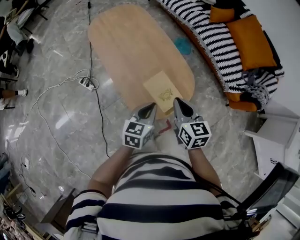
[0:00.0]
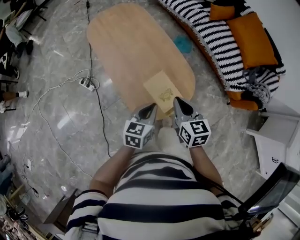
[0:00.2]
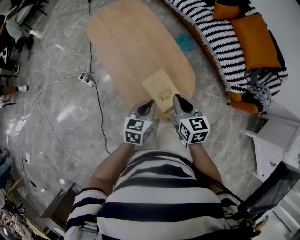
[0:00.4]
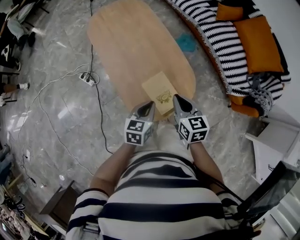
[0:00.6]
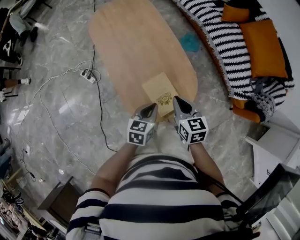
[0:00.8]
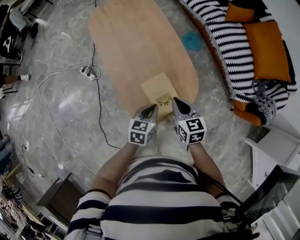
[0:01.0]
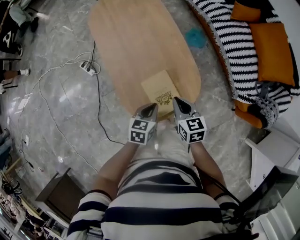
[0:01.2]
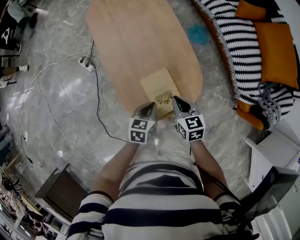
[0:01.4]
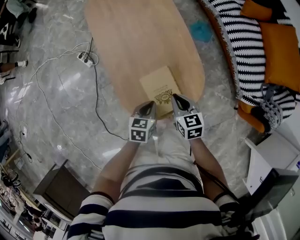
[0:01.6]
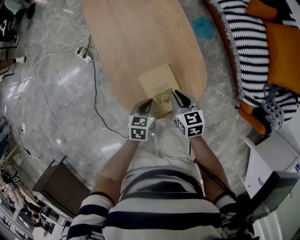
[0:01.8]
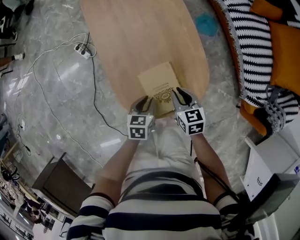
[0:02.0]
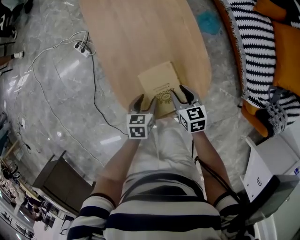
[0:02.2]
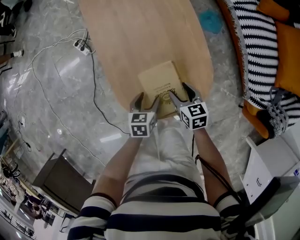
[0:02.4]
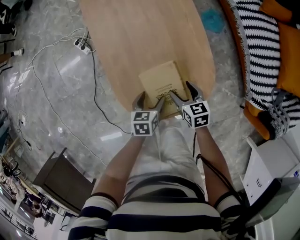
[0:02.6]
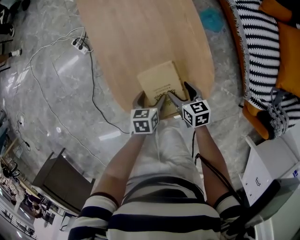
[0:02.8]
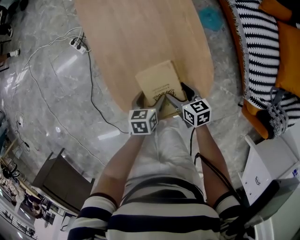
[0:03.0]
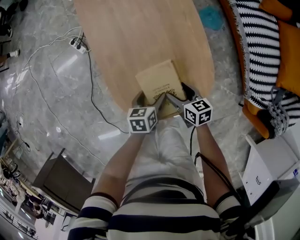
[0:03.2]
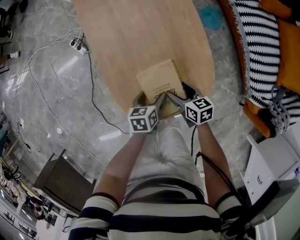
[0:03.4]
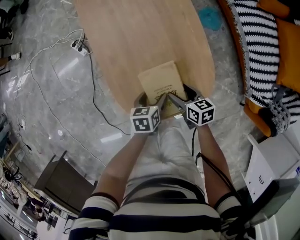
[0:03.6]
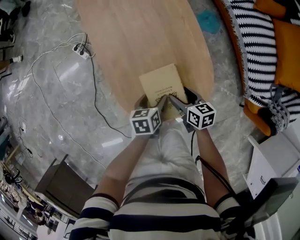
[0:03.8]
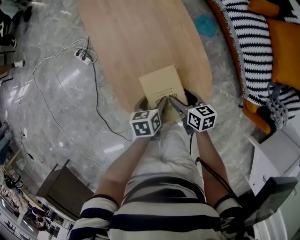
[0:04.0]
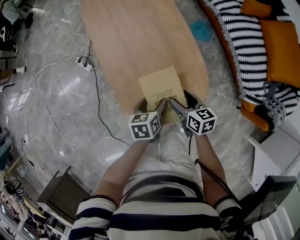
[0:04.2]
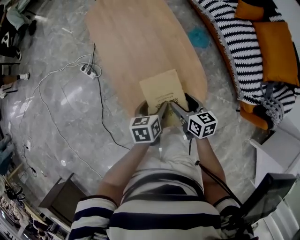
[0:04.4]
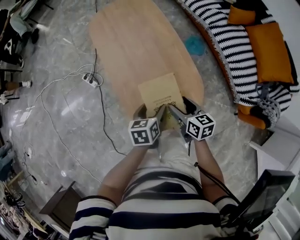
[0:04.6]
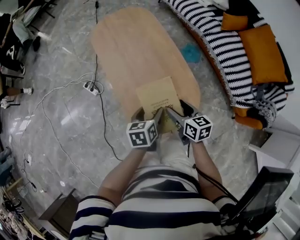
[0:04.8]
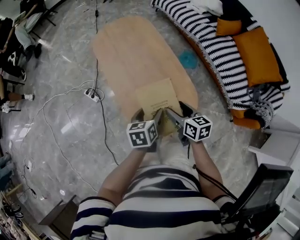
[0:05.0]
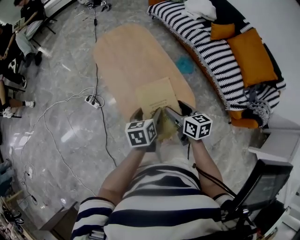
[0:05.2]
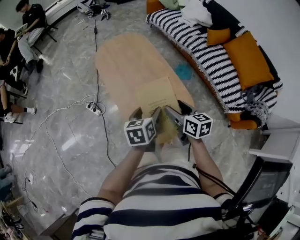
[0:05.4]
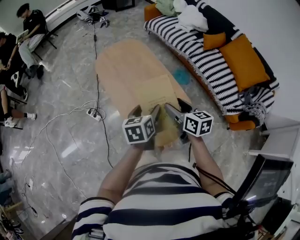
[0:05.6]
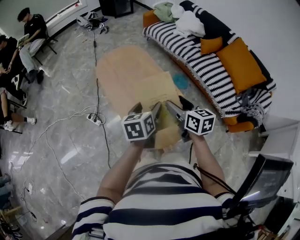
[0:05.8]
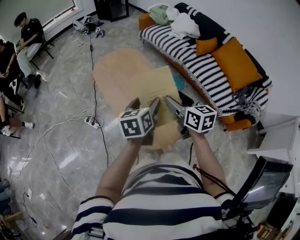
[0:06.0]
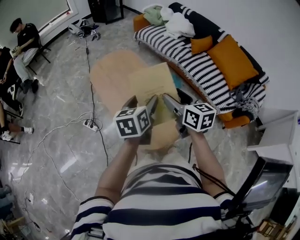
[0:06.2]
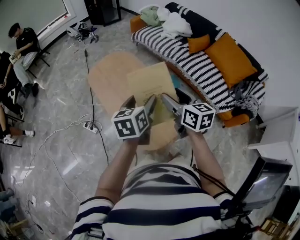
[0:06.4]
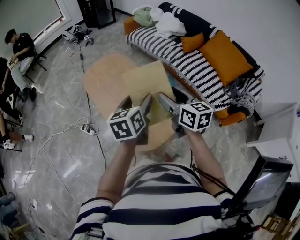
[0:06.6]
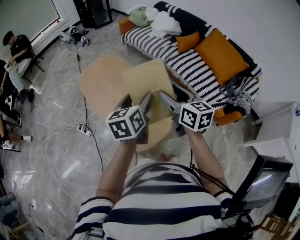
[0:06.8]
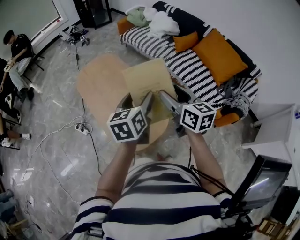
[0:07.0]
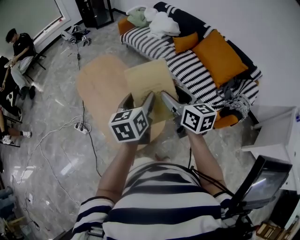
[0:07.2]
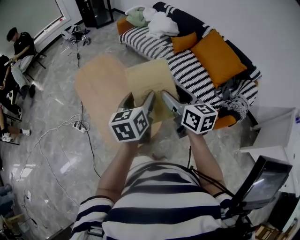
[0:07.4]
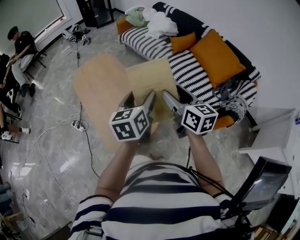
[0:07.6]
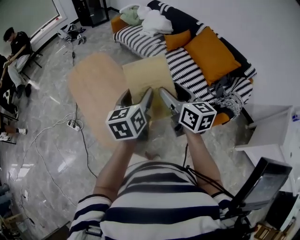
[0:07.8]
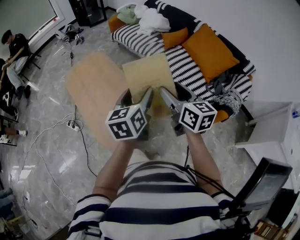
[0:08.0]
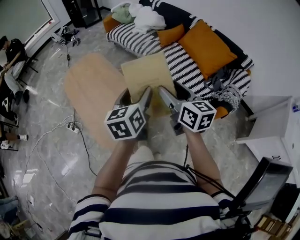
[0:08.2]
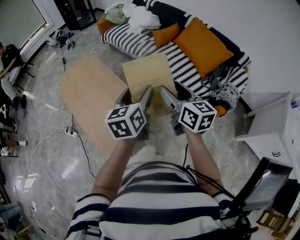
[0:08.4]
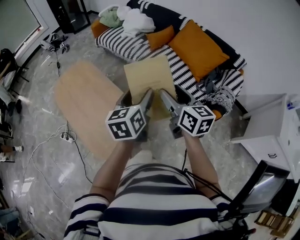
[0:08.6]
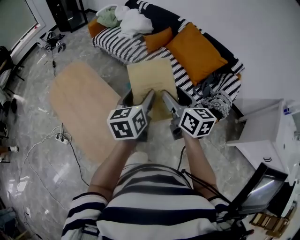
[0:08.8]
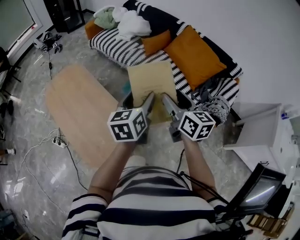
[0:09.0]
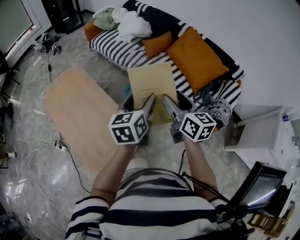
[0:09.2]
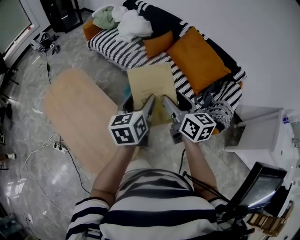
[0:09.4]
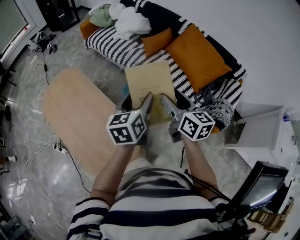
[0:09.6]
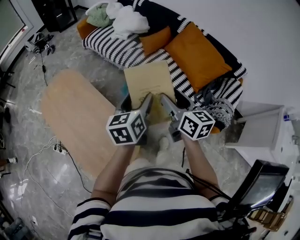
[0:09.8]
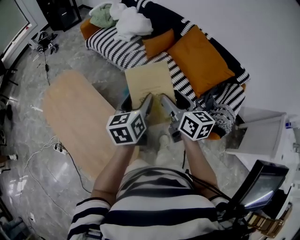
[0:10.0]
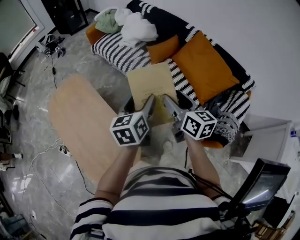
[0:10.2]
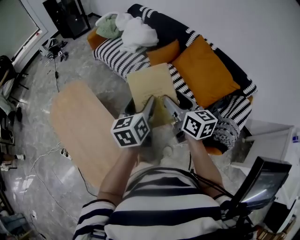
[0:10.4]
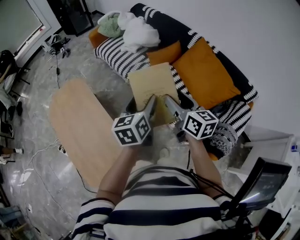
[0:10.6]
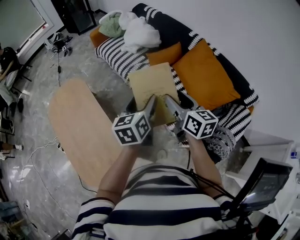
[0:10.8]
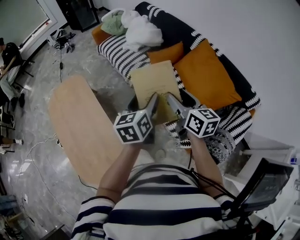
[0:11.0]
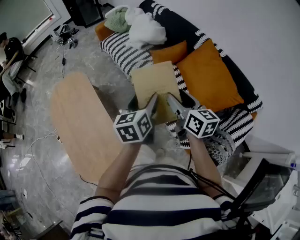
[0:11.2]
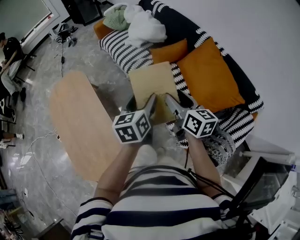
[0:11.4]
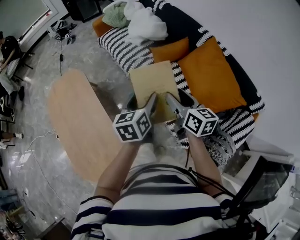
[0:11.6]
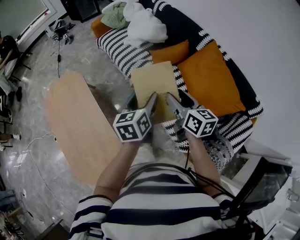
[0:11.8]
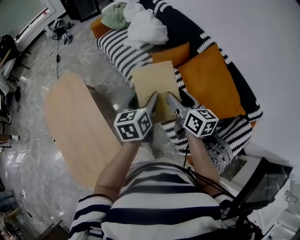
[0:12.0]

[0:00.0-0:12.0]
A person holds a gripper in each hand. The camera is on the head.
0:00.0 to 0:01.6: The two grippers go roughly 20 cm downward. The right gripper swivels some 20 degrees. Meanwhile the left gripper changes its angle by about 30 degrees.
0:01.6 to 0:03.0: Both grippers travel together downward, roughly 10 cm. The right gripper opens its fingers. The left gripper opens.
0:03.0 to 0:04.4: The grippers both shift upward by roughly 15 cm.
0:04.4 to 0:06.0: Both grippers move upward, about 25 cm. The left gripper swivels approximately 30 degrees; the right gripper swivels some 20 degrees.
0:06.0 to 0:07.6: Both grippers travel together to the right, roughly 20 cm.
0:07.6 to 0:09.0: Both grippers move to the right and forward, some 15 cm.
0:09.0 to 0:10.4: Both grippers move forward, some 20 cm.
0:10.4 to 0:12.0: Both grippers move forward and to the right, some 15 cm.

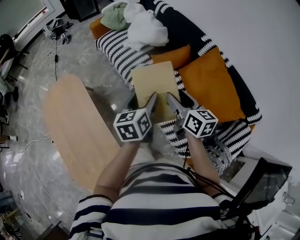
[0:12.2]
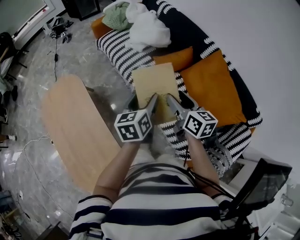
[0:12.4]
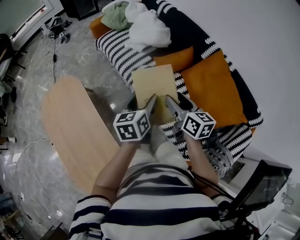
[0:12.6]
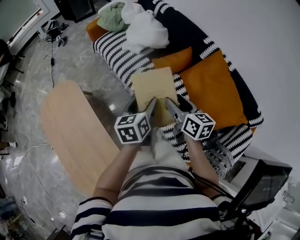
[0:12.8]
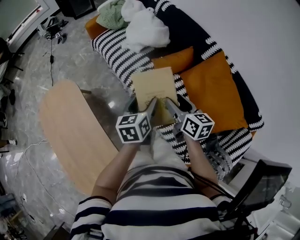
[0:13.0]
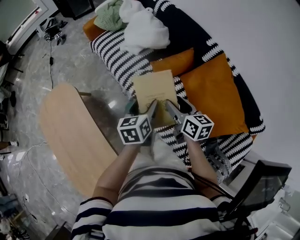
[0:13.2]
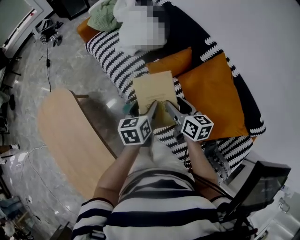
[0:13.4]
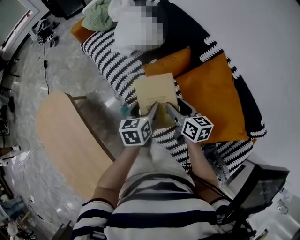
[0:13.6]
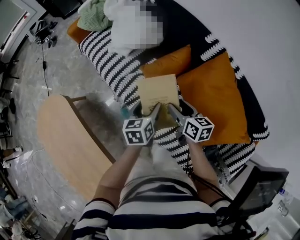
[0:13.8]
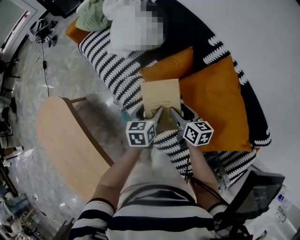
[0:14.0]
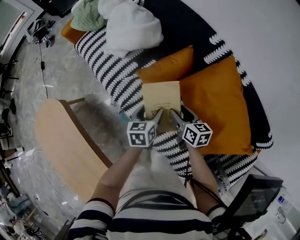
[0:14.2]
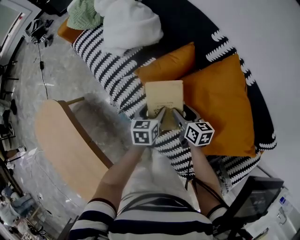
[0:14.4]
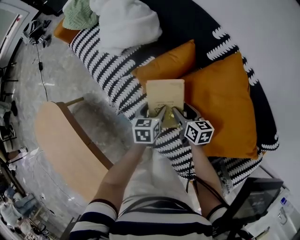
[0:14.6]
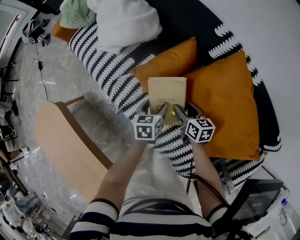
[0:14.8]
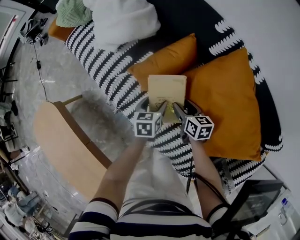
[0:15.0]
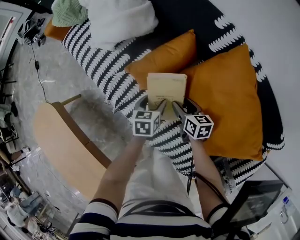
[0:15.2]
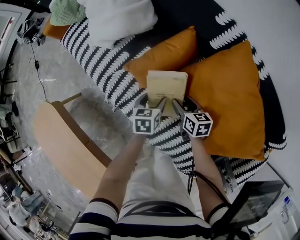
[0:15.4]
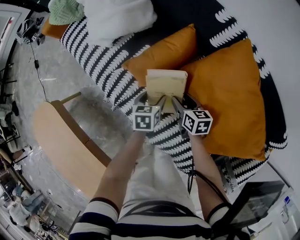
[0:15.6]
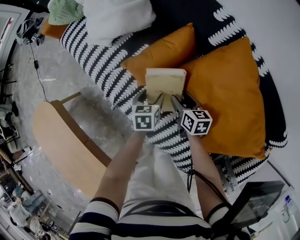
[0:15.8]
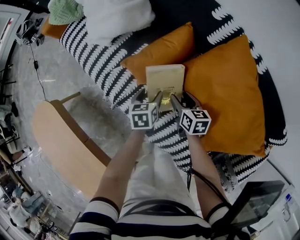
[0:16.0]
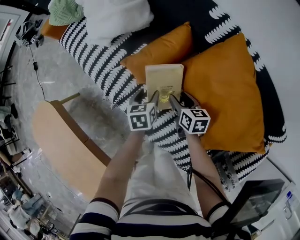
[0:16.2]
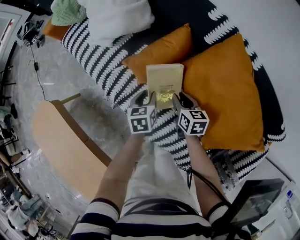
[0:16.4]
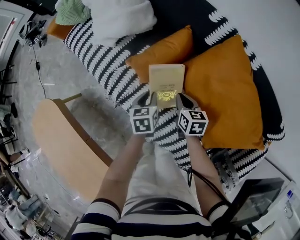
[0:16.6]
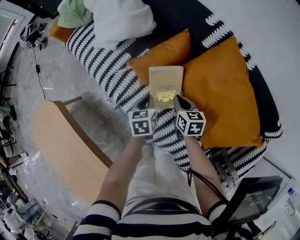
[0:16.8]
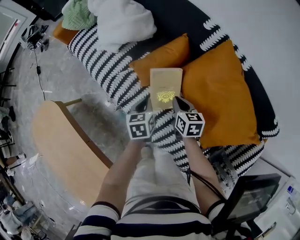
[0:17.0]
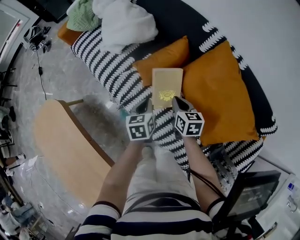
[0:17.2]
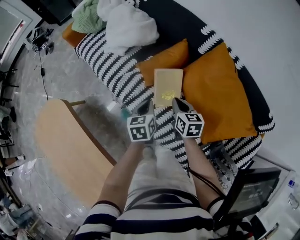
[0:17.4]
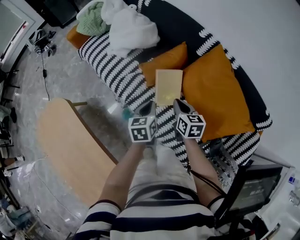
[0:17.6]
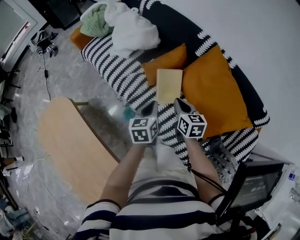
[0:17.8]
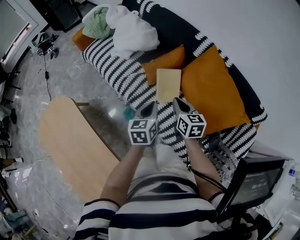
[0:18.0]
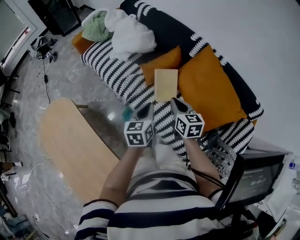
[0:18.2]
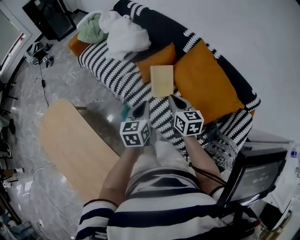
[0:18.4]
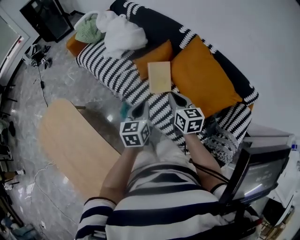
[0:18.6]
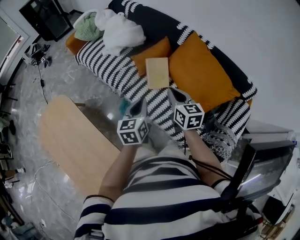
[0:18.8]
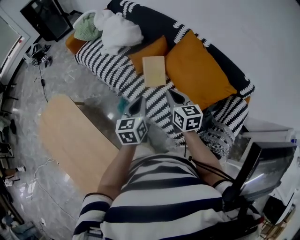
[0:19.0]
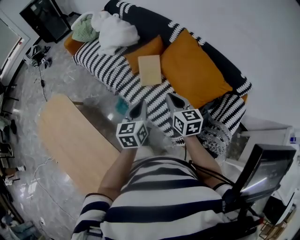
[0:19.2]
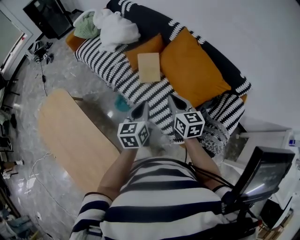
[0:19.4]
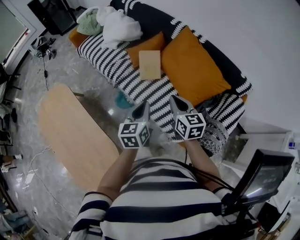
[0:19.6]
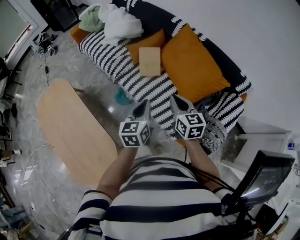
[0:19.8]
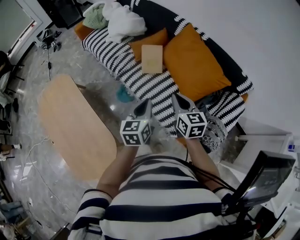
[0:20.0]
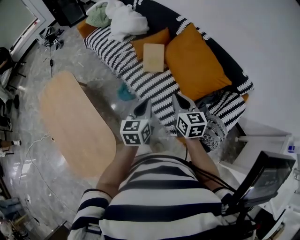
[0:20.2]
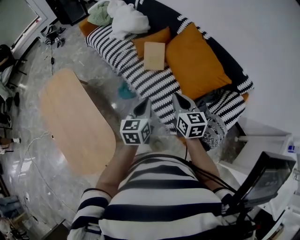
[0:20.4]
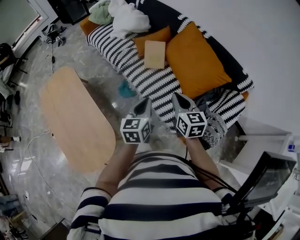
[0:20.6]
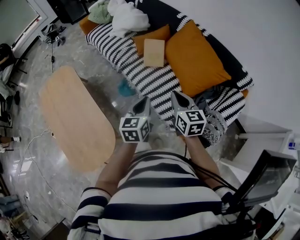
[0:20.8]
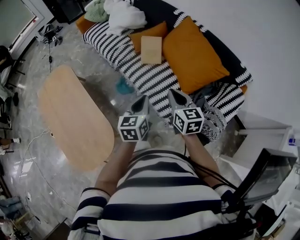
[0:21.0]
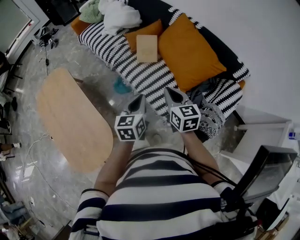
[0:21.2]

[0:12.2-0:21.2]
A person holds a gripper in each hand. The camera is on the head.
0:12.2 to 0:13.8: The right gripper is displaced downward, forward and to the right by approximately 25 cm; the left gripper shifts about 25 cm forward, downward and to the right.
0:13.8 to 0:15.2: Both grippers move downward, some 20 cm.
0:15.2 to 0:16.6: The right gripper closes up, while the left gripper closes its fingers.
0:16.6 to 0:18.2: Both grippers travel together upward and backward, about 25 cm. The left gripper changes its angle by approximately 20 degrees.
0:18.2 to 0:19.8: Both grippers travel together backward and to the right, approximately 20 cm.
0:19.8 to 0:21.2: Both grippers travel together backward, about 5 cm.

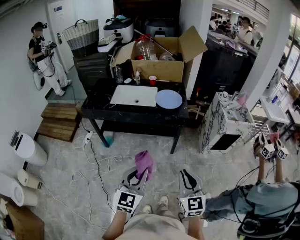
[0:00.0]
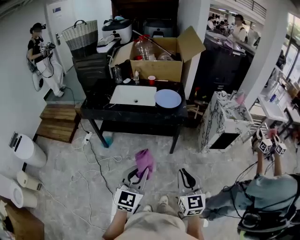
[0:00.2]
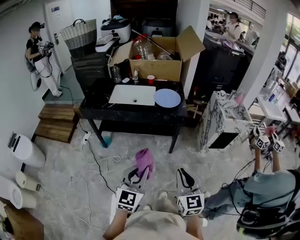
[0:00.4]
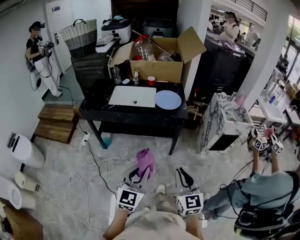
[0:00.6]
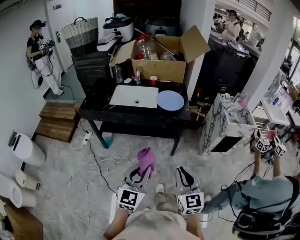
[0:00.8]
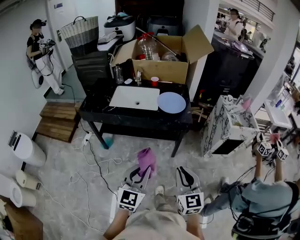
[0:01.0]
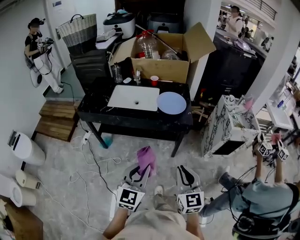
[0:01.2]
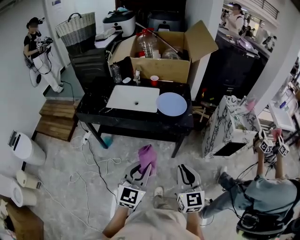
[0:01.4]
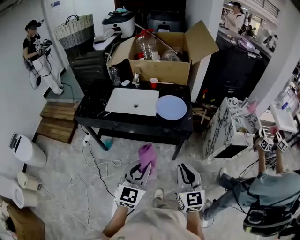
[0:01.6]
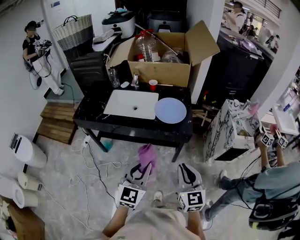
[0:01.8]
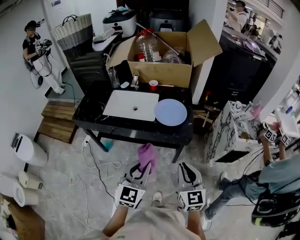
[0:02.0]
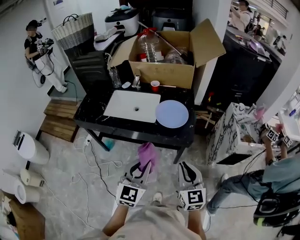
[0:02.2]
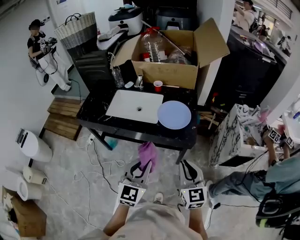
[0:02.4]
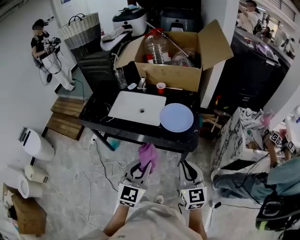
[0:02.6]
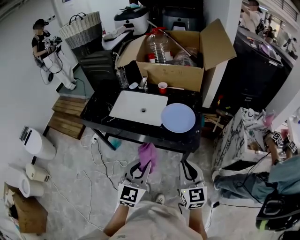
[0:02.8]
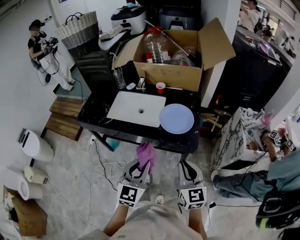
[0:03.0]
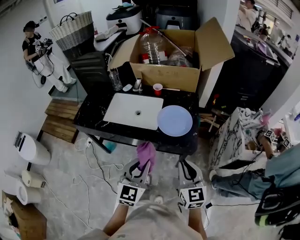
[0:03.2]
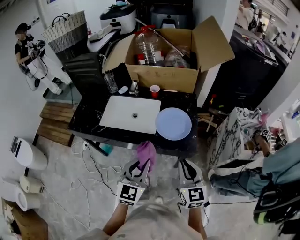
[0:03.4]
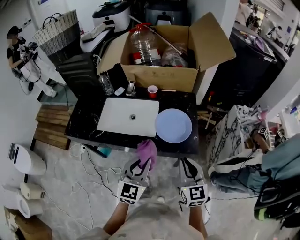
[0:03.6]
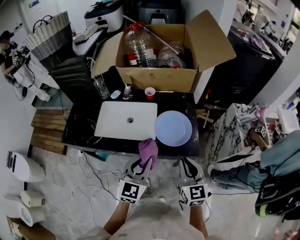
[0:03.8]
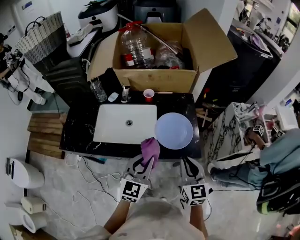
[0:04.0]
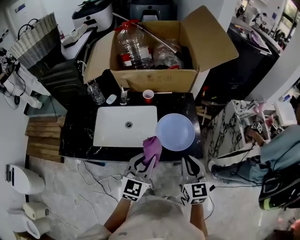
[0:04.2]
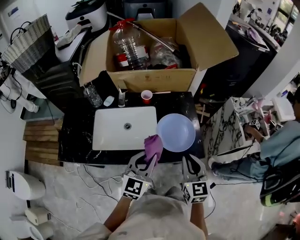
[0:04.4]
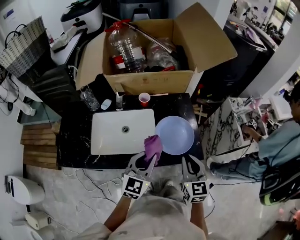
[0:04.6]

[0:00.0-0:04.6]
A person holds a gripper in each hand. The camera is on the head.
0:00.0 to 0:01.6: Both grippers travel together forward, about 20 cm.
0:01.6 to 0:03.0: Both grippers travel together forward, some 15 cm.
0:03.0 to 0:04.6: The left gripper shifts about 25 cm forward, and swivels about 30 degrees. The right gripper heads forward and to the left, covering roughly 20 cm, and swivels some 20 degrees.
